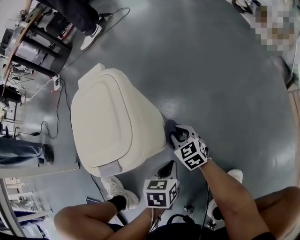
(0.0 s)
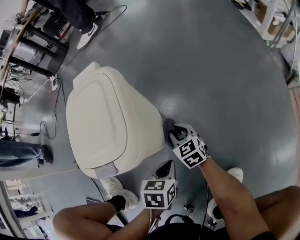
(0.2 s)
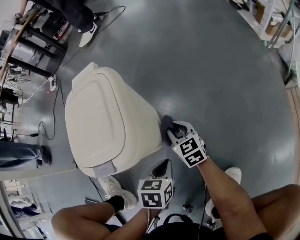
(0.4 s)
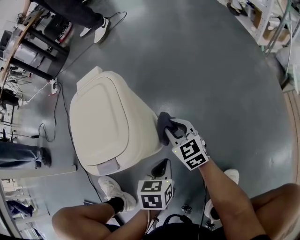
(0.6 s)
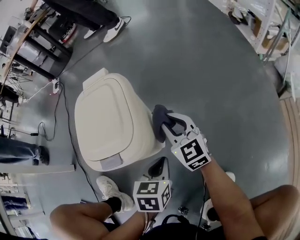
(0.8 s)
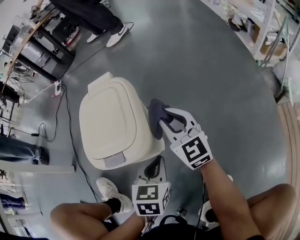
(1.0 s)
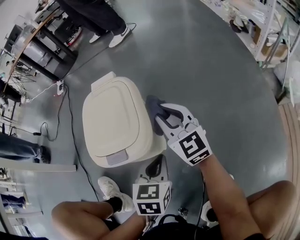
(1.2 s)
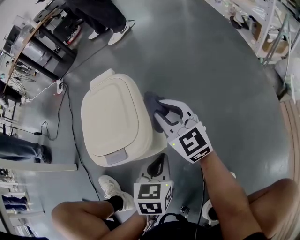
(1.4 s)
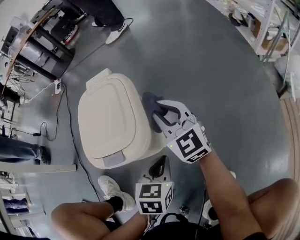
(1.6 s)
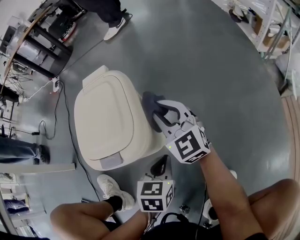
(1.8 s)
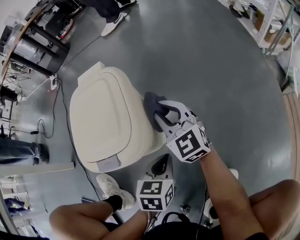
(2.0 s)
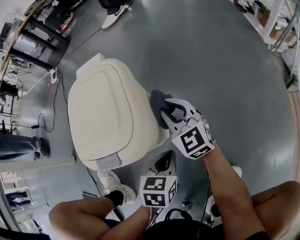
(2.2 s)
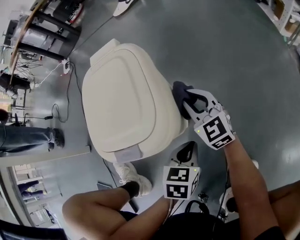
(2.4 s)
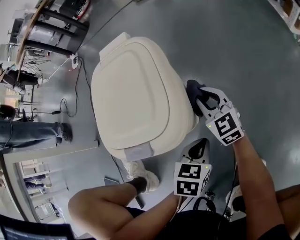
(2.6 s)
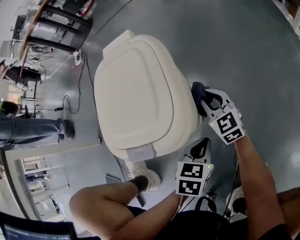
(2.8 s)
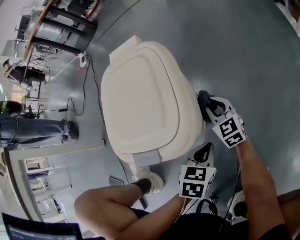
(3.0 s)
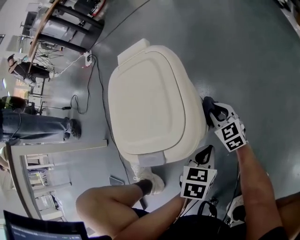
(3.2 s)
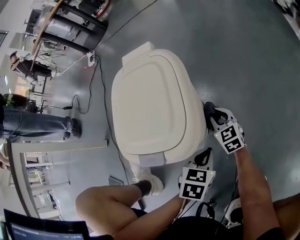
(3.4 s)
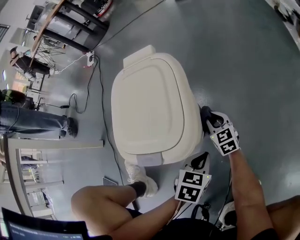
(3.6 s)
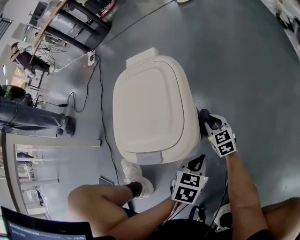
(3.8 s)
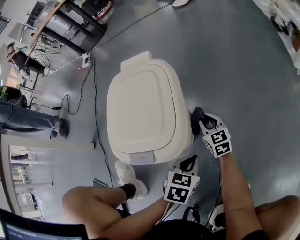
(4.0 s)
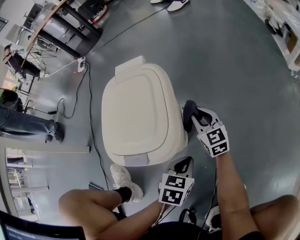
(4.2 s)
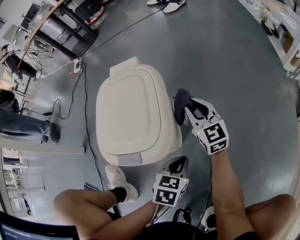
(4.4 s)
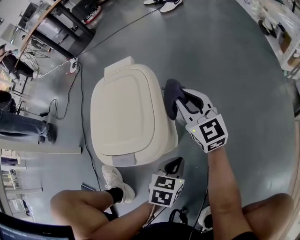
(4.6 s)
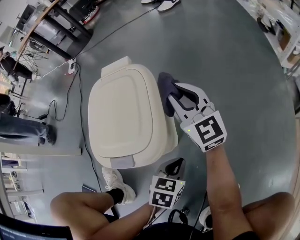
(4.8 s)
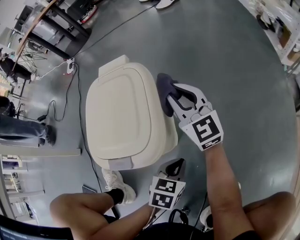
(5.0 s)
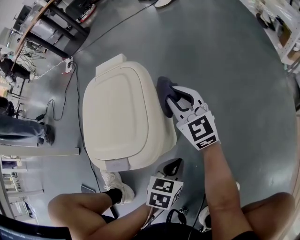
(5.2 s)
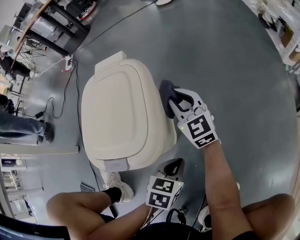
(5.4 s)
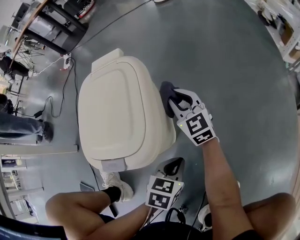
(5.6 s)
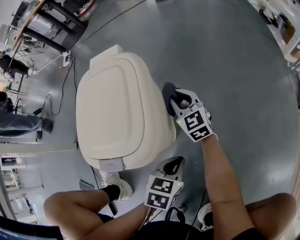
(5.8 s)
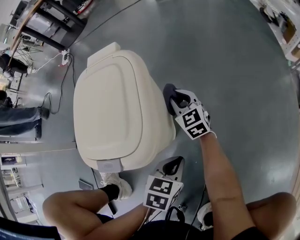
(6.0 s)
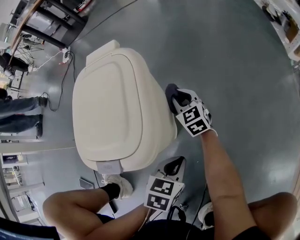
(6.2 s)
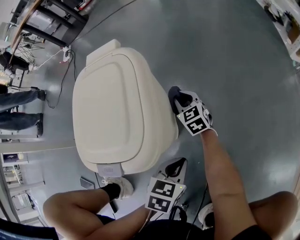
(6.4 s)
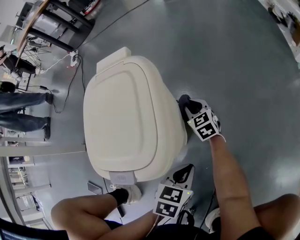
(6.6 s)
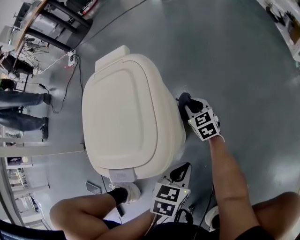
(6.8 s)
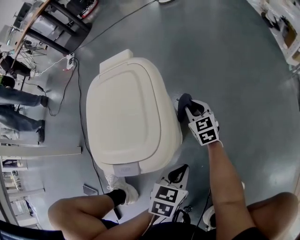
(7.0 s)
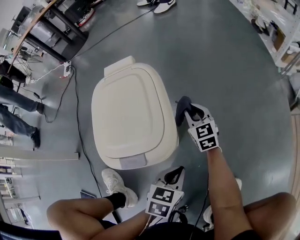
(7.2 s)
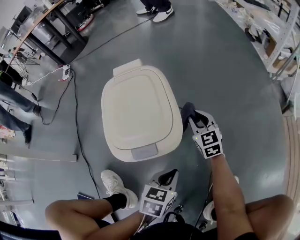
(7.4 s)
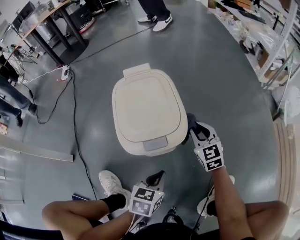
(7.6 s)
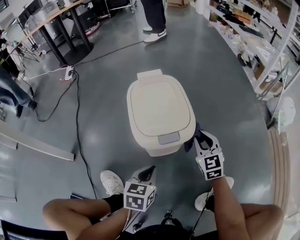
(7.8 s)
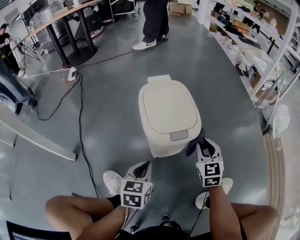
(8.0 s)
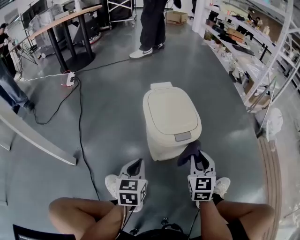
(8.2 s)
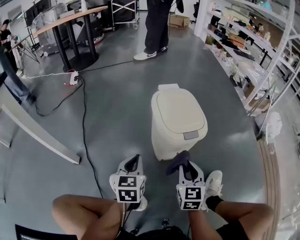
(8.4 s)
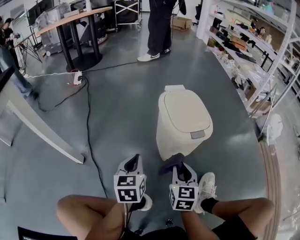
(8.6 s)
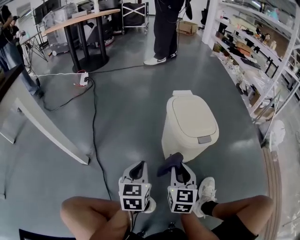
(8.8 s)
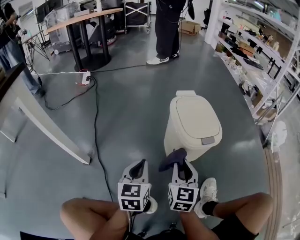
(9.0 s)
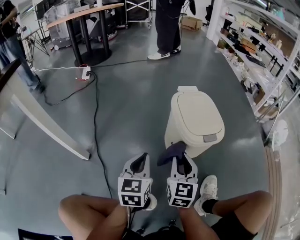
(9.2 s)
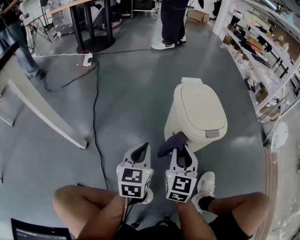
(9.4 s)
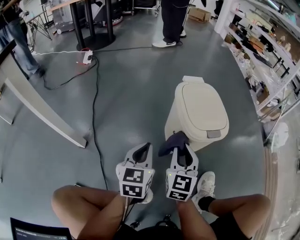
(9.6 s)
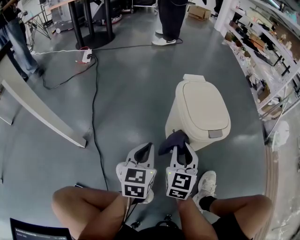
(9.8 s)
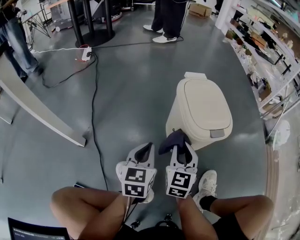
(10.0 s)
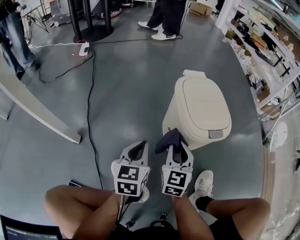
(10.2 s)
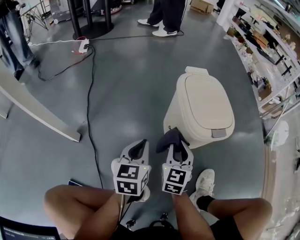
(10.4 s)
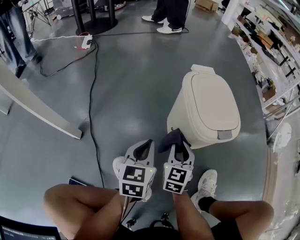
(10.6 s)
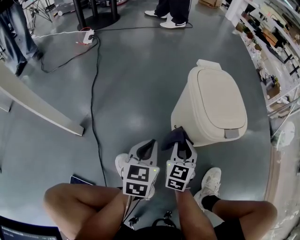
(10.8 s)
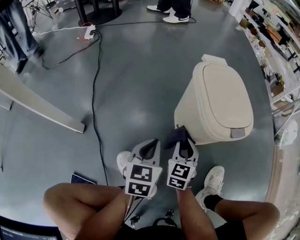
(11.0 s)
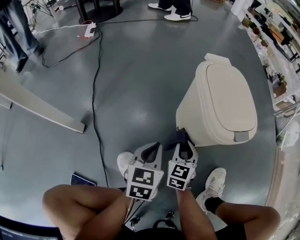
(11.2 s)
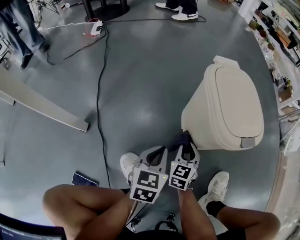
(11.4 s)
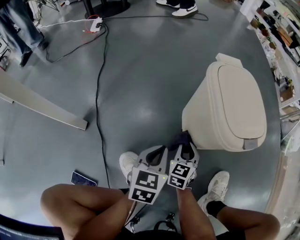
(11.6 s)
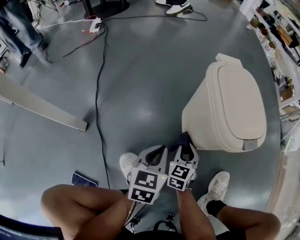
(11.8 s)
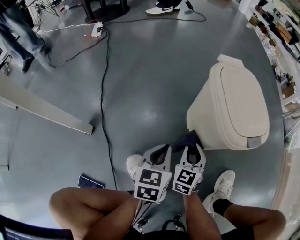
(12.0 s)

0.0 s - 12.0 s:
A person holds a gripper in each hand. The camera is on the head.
0.0 s - 1.6 s: The right gripper travels upward by some 25 cm, and changes its angle by roughly 30 degrees. The left gripper heads upward, covering approximately 10 cm.
1.6 s - 3.0 s: The right gripper travels downward by approximately 25 cm, and changes its angle by some 20 degrees, while the left gripper shifts some 10 cm downward.
3.0 s - 4.4 s: The right gripper goes roughly 15 cm upward.
4.4 s - 6.0 s: The right gripper goes roughly 10 cm downward.
6.0 s - 7.6 s: The right gripper moves backward, upward and to the right, some 20 cm; the left gripper shifts some 15 cm to the left, backward and upward.
7.6 s - 9.0 s: The right gripper shifts roughly 35 cm to the left, backward and upward, and turns by approximately 20 degrees. The left gripper moves to the left and upward, approximately 30 cm, and turns by approximately 30 degrees.
9.0 s - 10.4 s: The left gripper travels downward by roughly 5 cm; the right gripper moves downward and forward, about 10 cm.
10.4 s - 12.0 s: The two grippers go roughly 10 cm downward.

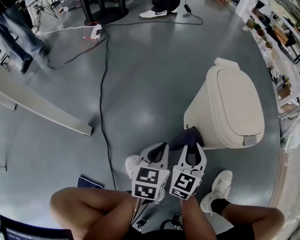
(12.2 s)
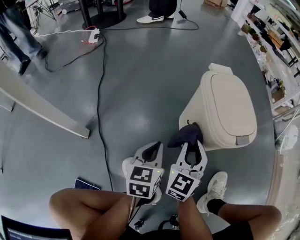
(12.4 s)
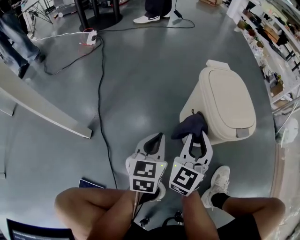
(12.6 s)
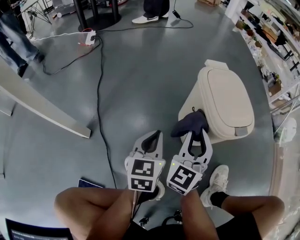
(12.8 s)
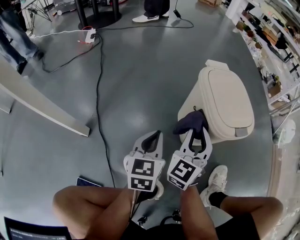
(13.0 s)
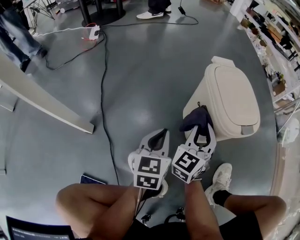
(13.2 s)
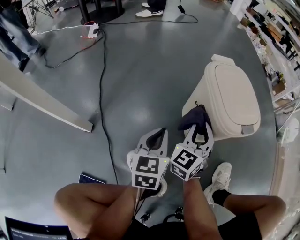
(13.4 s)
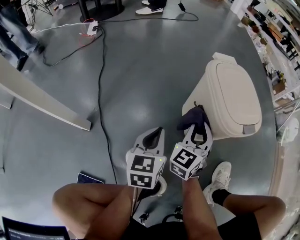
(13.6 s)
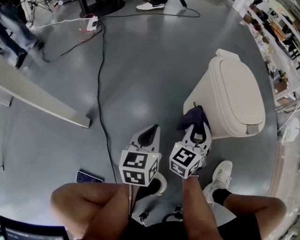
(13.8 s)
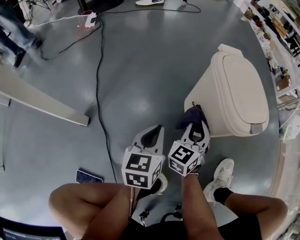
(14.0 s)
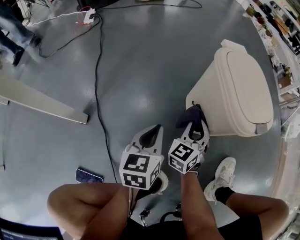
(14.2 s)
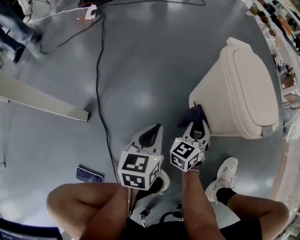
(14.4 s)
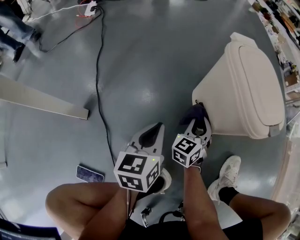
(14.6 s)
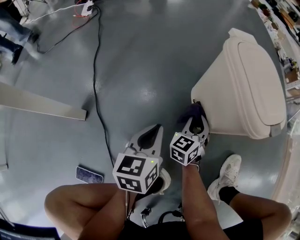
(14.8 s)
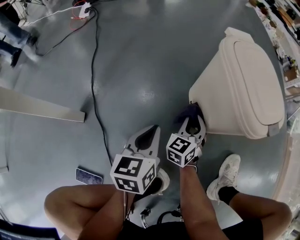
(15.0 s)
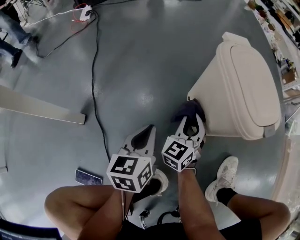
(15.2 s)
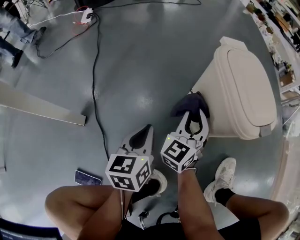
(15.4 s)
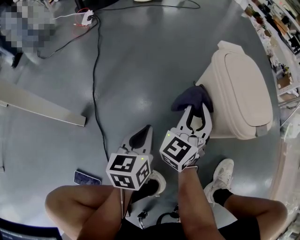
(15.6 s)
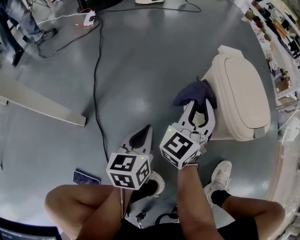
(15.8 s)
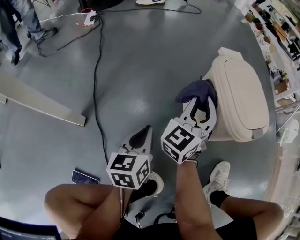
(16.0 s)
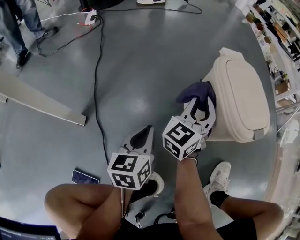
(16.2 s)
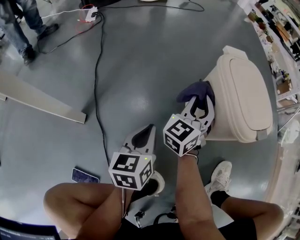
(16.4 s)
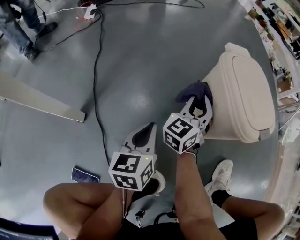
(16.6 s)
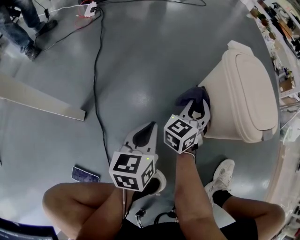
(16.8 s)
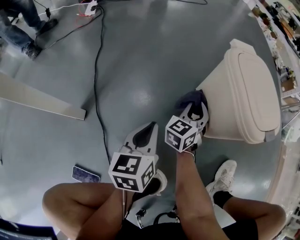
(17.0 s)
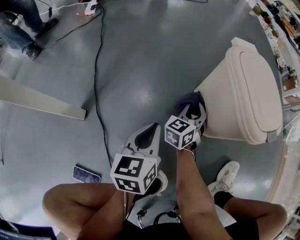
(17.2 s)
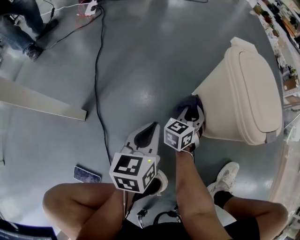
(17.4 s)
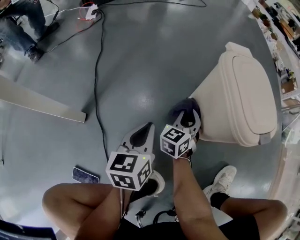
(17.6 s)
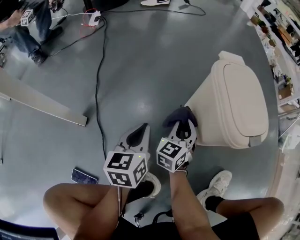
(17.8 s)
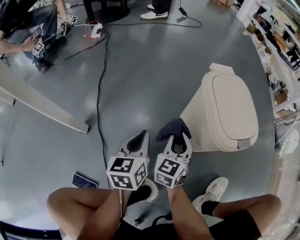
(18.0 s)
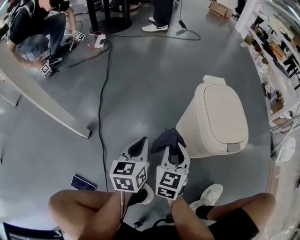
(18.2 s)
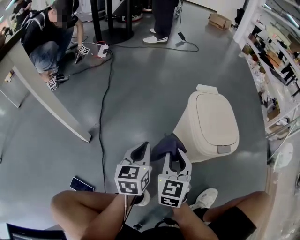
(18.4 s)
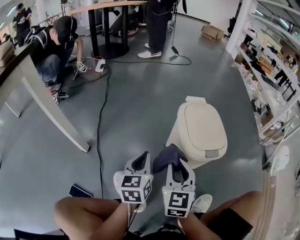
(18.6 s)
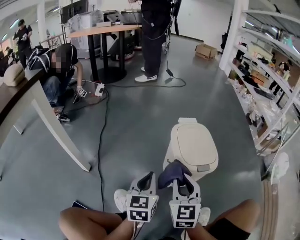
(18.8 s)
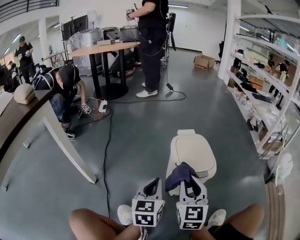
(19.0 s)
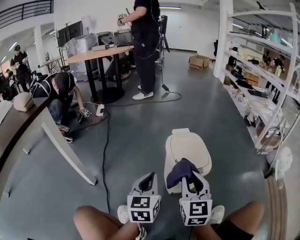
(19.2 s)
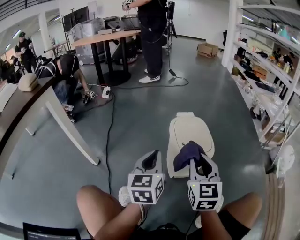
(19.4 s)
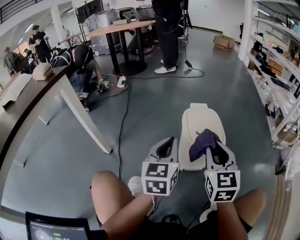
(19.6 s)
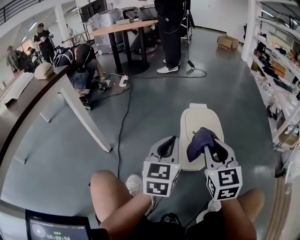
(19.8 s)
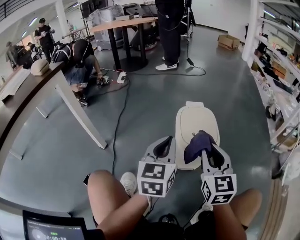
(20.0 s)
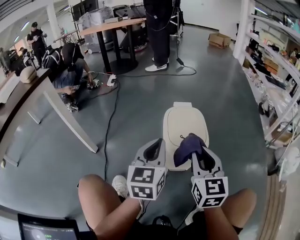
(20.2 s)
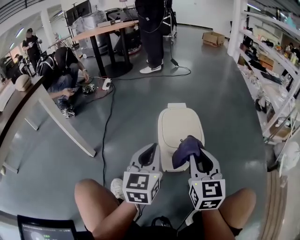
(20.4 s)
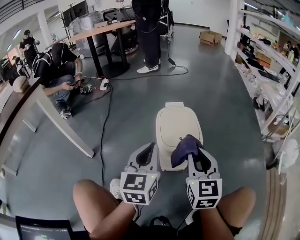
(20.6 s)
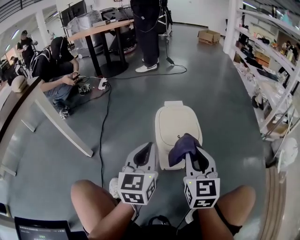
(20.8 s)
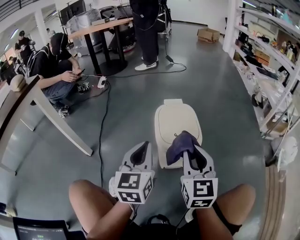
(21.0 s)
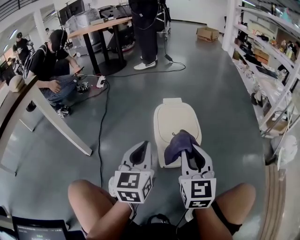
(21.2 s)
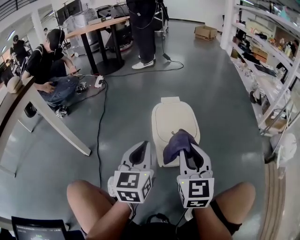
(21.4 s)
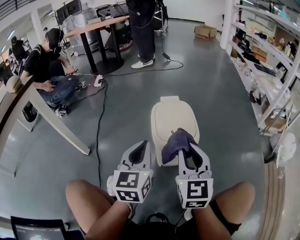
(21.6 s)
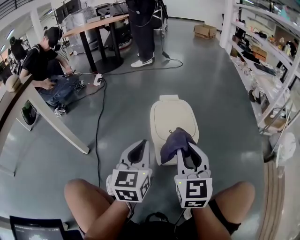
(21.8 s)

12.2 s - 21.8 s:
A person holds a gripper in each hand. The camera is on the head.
12.2 s - 13.8 s: The left gripper heads to the left, covering roughly 5 cm, while the right gripper travels upward and back again, roughly 10 cm each way.
13.8 s - 15.4 s: The right gripper moves some 15 cm downward and comes back.
15.4 s - 17.0 s: The right gripper is displaced downward by some 5 cm.
17.0 s - 18.6 s: The left gripper travels upward and to the right by approximately 15 cm; the right gripper travels upward and backward by about 25 cm, and changes its angle by about 30 degrees.
18.6 s - 20.2 s: The right gripper travels to the right and upward by about 20 cm. The left gripper moves upward and to the right, approximately 20 cm.
20.2 s - 21.8 s: There are only small adjustments of the grippers.

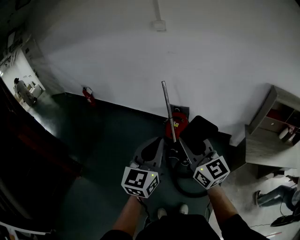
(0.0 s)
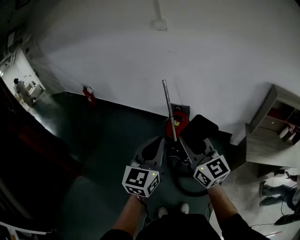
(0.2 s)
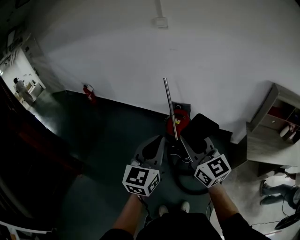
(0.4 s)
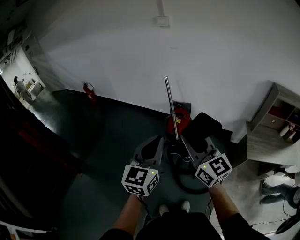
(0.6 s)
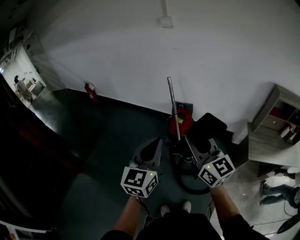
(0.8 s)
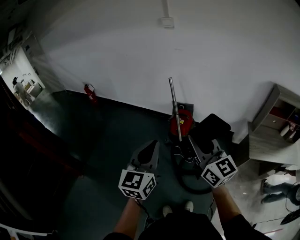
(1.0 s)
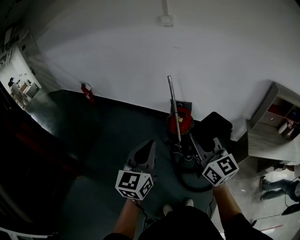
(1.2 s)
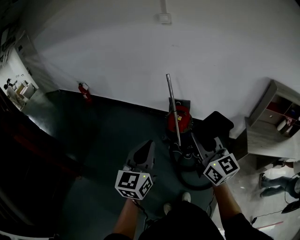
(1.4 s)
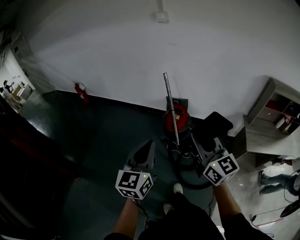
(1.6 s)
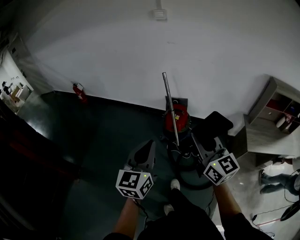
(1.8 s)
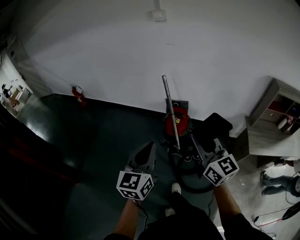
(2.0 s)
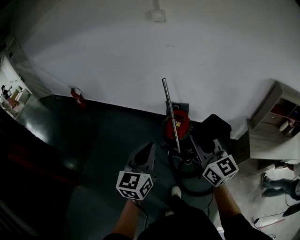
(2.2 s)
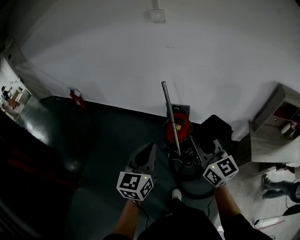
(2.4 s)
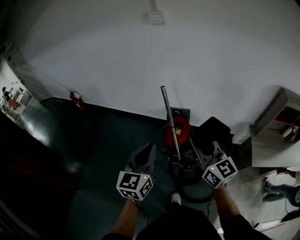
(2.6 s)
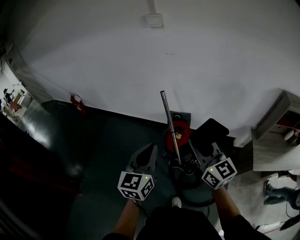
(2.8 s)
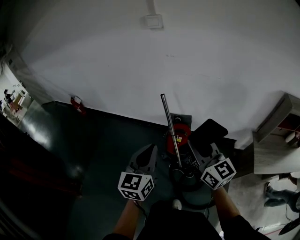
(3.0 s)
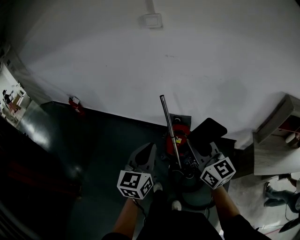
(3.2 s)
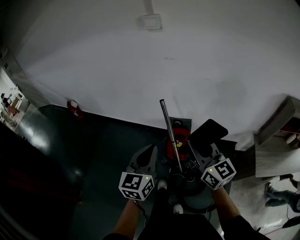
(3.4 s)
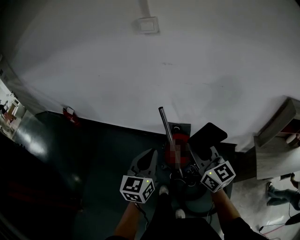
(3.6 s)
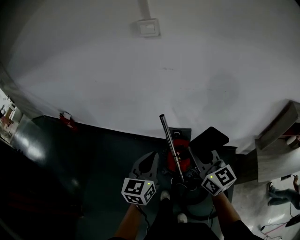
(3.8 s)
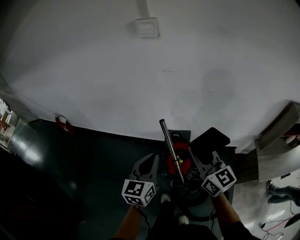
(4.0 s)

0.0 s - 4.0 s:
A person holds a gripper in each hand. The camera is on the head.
0.0 s - 1.4 s: The left gripper travels to the left by about 15 cm, while the right gripper changes place by about 5 cm.
1.4 s - 2.6 s: Both grippers move forward, approximately 20 cm.
2.6 s - 4.0 s: The two grippers go about 25 cm forward.
